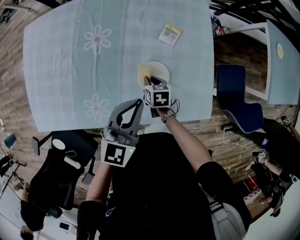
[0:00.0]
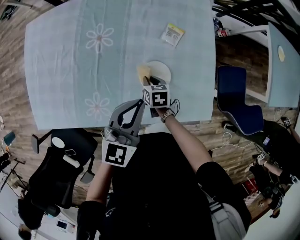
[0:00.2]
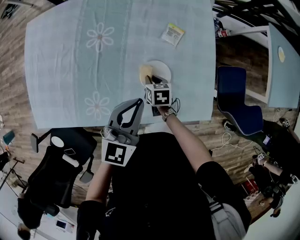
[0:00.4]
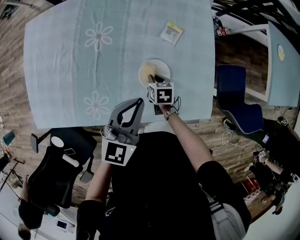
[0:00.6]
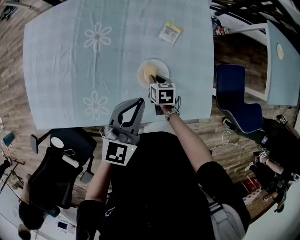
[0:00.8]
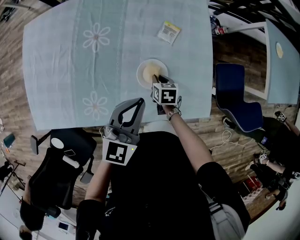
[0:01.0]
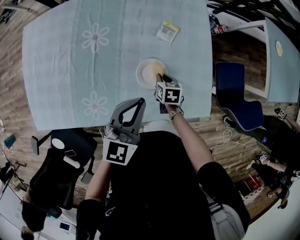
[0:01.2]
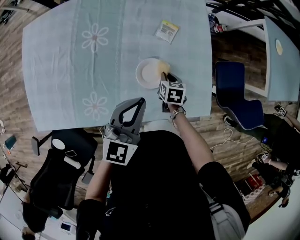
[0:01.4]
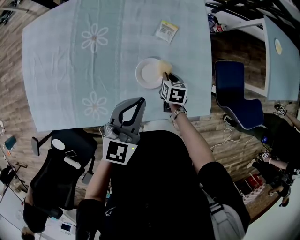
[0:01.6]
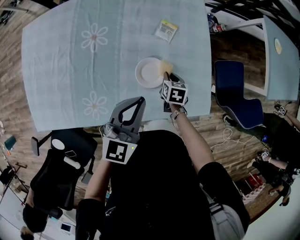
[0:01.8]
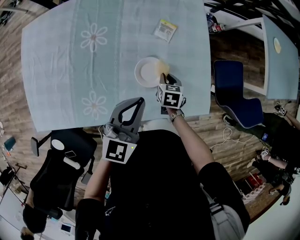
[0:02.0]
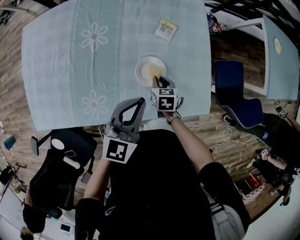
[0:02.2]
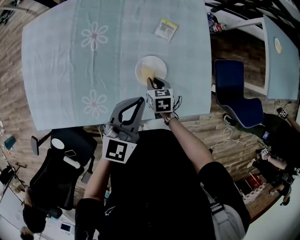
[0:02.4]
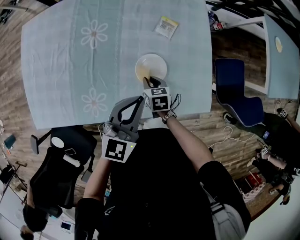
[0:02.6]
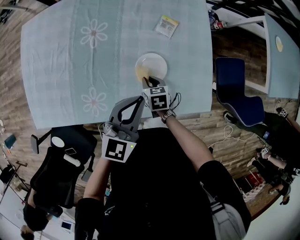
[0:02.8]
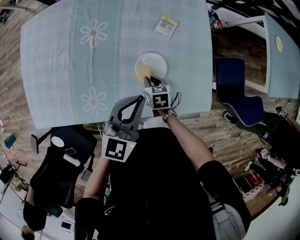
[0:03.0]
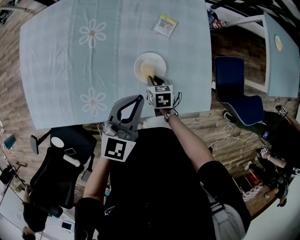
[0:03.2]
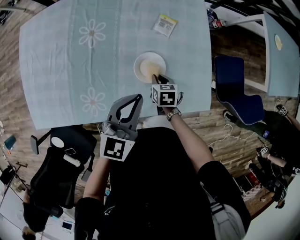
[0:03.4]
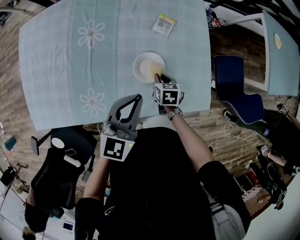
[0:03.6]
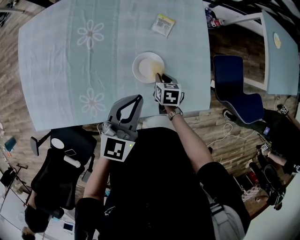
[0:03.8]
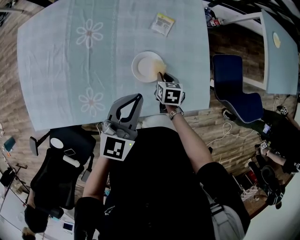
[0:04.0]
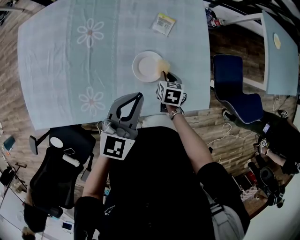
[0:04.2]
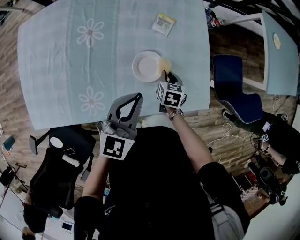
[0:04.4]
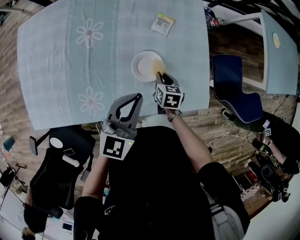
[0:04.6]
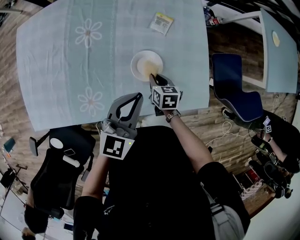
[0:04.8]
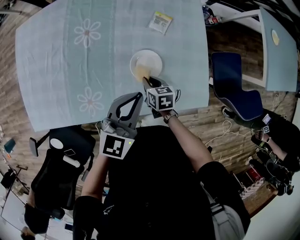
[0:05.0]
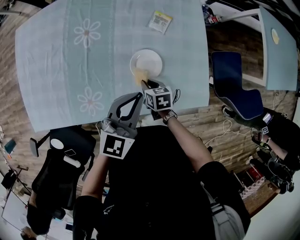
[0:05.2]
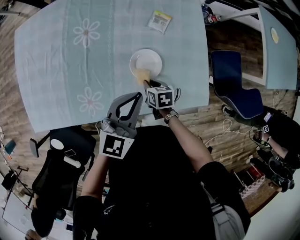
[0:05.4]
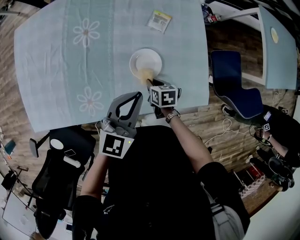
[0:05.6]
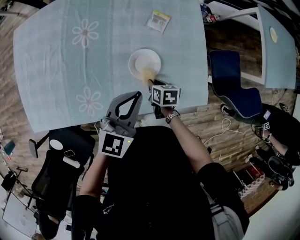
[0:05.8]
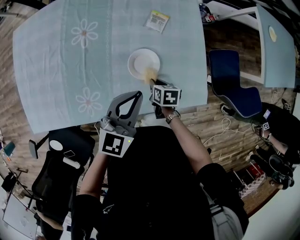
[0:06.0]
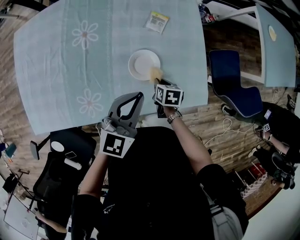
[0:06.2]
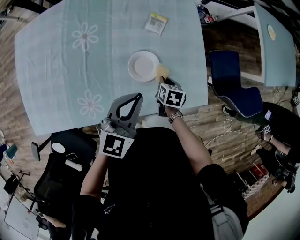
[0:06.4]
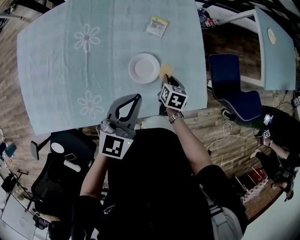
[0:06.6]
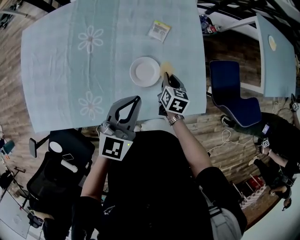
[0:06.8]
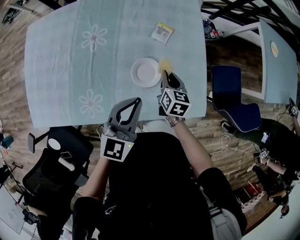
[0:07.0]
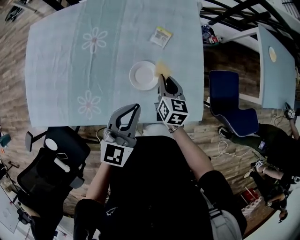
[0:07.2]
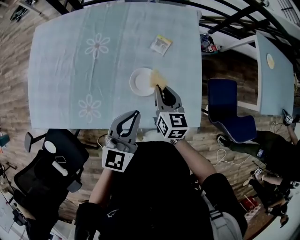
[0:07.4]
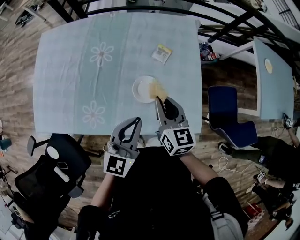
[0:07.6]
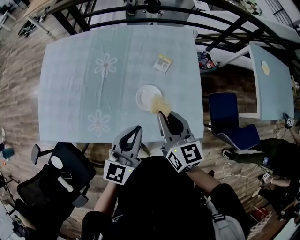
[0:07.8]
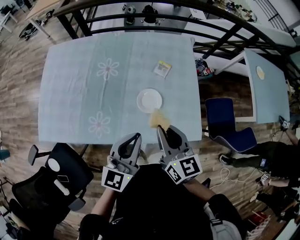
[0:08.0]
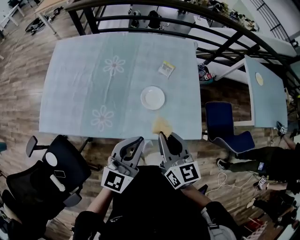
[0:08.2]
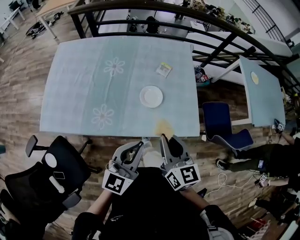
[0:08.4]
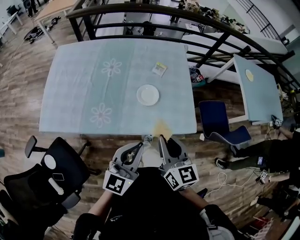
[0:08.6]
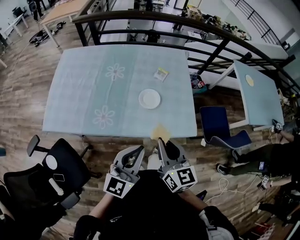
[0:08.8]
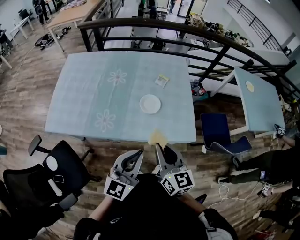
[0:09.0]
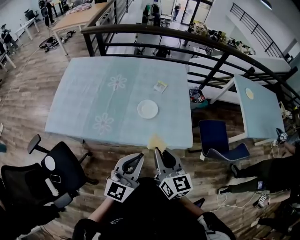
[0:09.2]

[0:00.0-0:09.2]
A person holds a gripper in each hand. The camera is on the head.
0:00.0 to 0:01.6: The right gripper moves to the right, roughly 10 cm.
0:01.6 to 0:03.0: The right gripper travels to the left and backward by about 10 cm.
0:03.0 to 0:04.6: The right gripper travels to the right by some 5 cm.
0:04.6 to 0:06.2: The right gripper moves about 5 cm to the left and comes back.
0:06.2 to 0:07.6: The right gripper is displaced upward by approximately 25 cm, and points its fingers roughly 40 degrees further upward. The left gripper shifts by some 5 cm, and turns by some 20 degrees.
0:07.6 to 0:09.2: Both grippers move backward, some 25 cm.

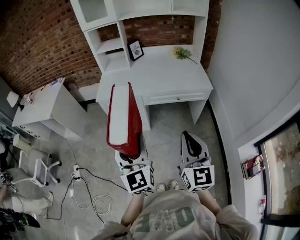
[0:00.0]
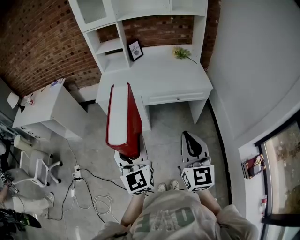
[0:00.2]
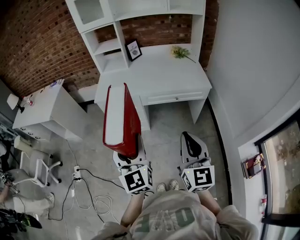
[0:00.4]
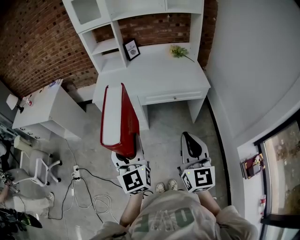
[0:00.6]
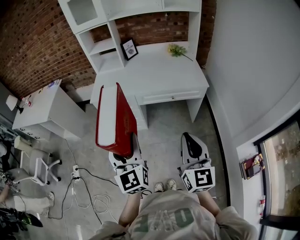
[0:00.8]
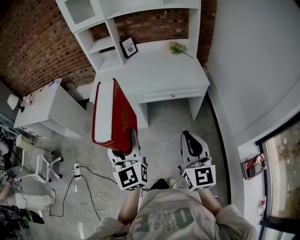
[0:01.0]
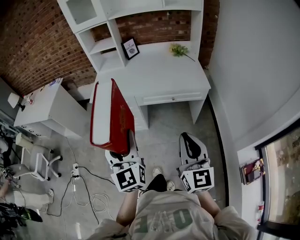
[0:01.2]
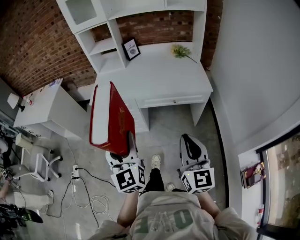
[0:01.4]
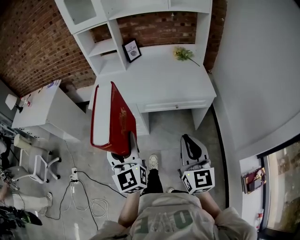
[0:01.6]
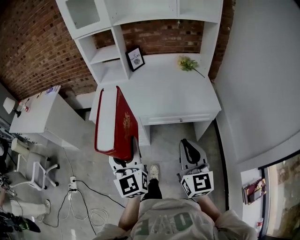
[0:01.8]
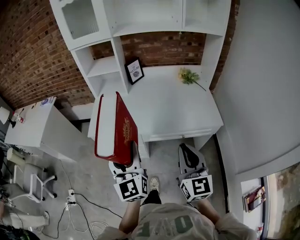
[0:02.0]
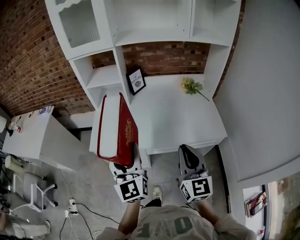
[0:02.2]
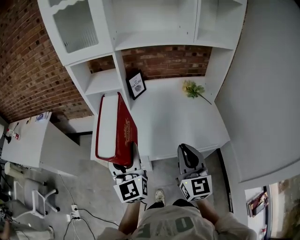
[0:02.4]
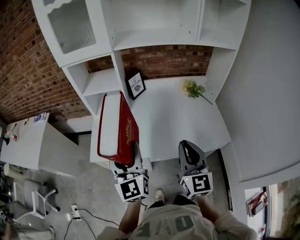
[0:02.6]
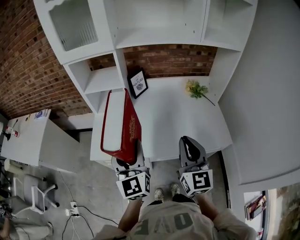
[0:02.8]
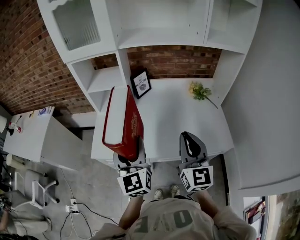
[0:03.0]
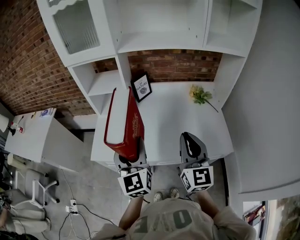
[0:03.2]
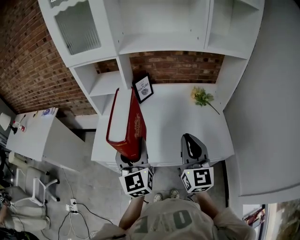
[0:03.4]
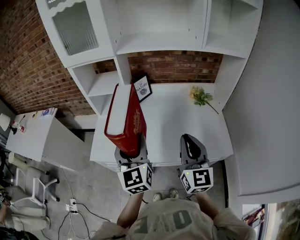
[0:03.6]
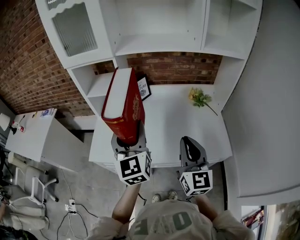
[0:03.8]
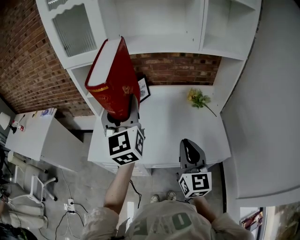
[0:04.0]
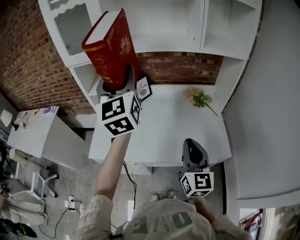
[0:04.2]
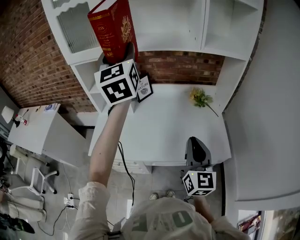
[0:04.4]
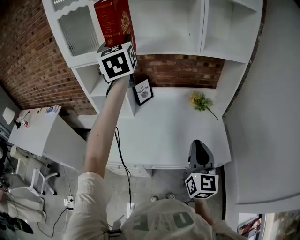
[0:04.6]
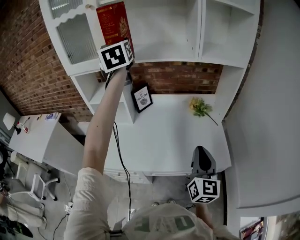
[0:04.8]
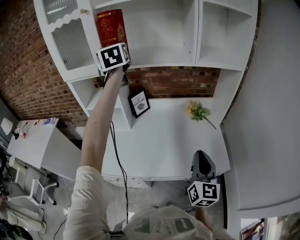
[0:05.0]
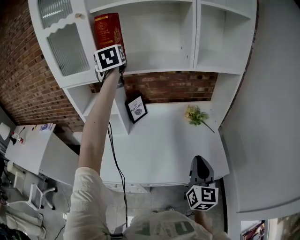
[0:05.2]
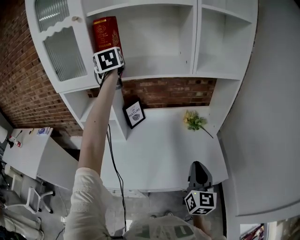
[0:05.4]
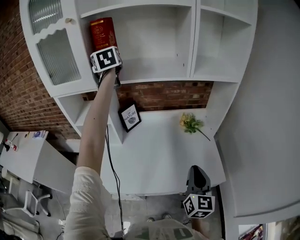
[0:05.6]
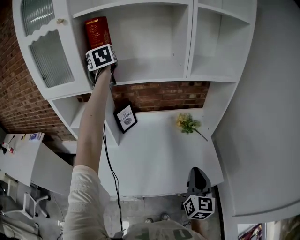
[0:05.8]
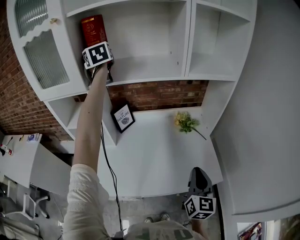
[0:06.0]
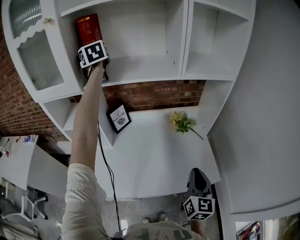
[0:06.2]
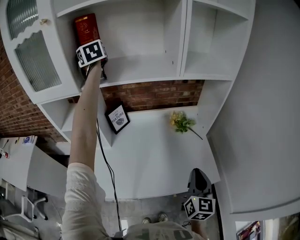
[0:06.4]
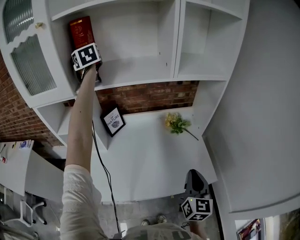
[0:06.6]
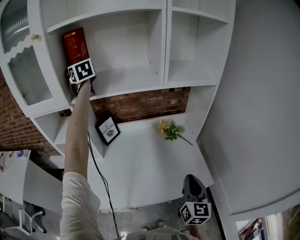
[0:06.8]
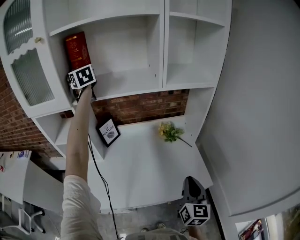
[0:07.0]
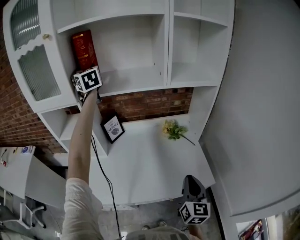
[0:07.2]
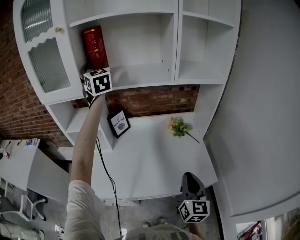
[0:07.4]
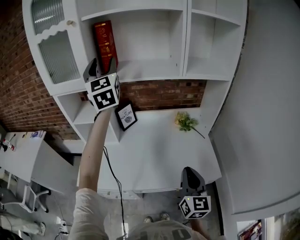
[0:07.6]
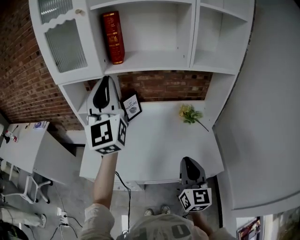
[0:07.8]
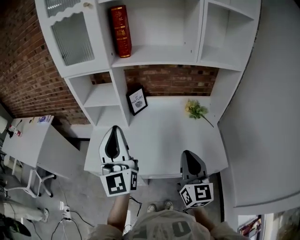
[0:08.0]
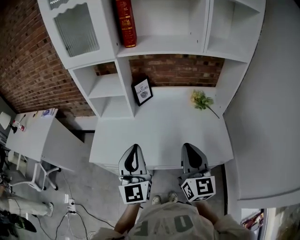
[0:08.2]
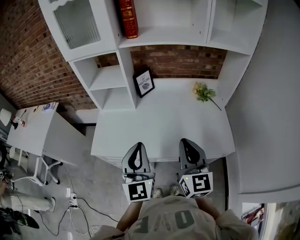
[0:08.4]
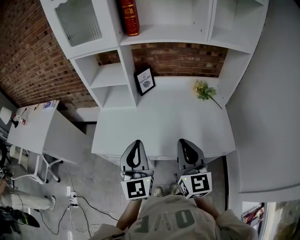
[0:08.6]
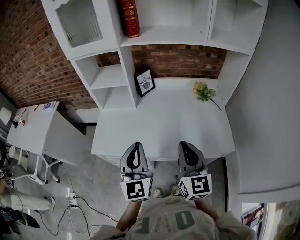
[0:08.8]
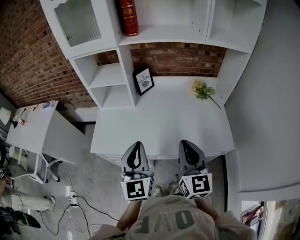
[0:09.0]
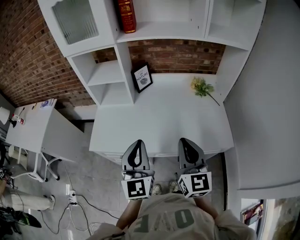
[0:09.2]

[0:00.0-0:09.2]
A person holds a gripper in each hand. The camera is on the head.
0:00.0 to 0:01.6: The left gripper heads forward, covering some 10 cm. Meanwhile the right gripper goes roughly 10 cm forward and to the right.
0:01.6 to 0:03.0: The two grippers go roughly 35 cm forward.
0:03.0 to 0:04.6: The left gripper goes some 35 cm upward and forward. Meanwhile the right gripper moves to the right, approximately 10 cm.
0:04.6 to 0:06.2: The right gripper travels to the right, downward and forward by about 10 cm. The left gripper heads forward, covering about 25 cm.
0:06.2 to 0:07.6: The right gripper moves to the left, about 5 cm. Meanwhile the left gripper shifts roughly 20 cm backward, and rotates approximately 20 degrees.
0:07.6 to 0:09.2: The right gripper goes approximately 10 cm to the left. The left gripper goes approximately 40 cm backward and downward, and closes its fingers.

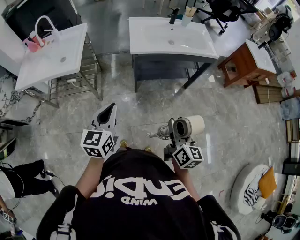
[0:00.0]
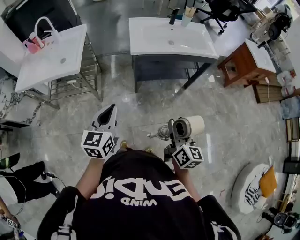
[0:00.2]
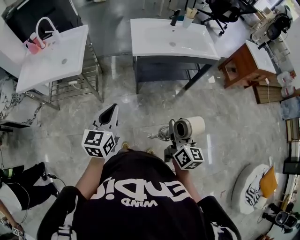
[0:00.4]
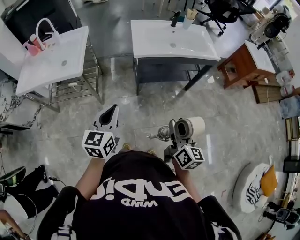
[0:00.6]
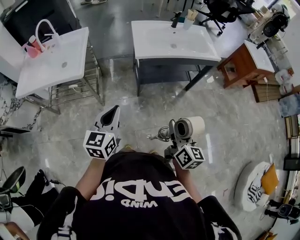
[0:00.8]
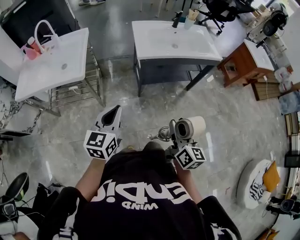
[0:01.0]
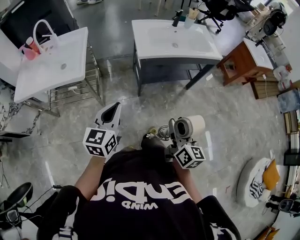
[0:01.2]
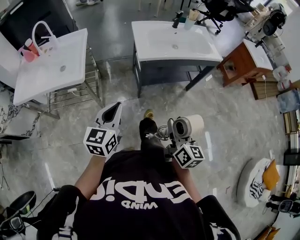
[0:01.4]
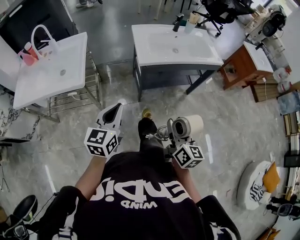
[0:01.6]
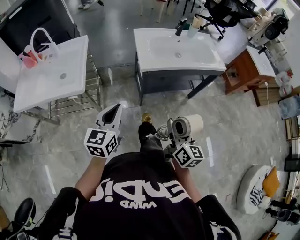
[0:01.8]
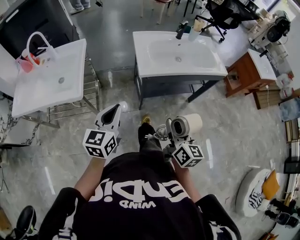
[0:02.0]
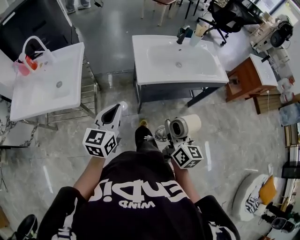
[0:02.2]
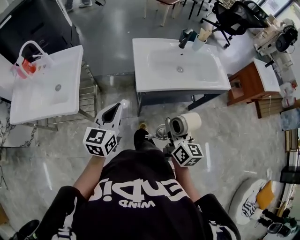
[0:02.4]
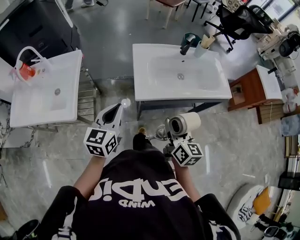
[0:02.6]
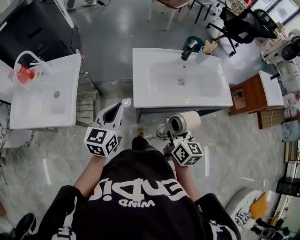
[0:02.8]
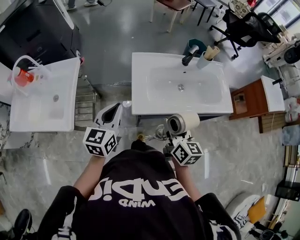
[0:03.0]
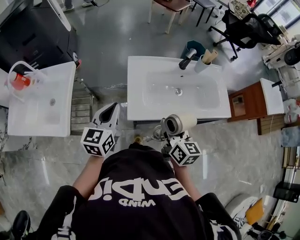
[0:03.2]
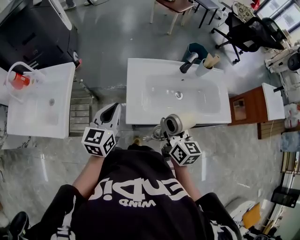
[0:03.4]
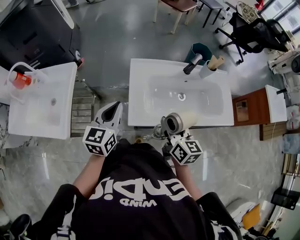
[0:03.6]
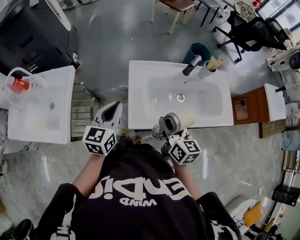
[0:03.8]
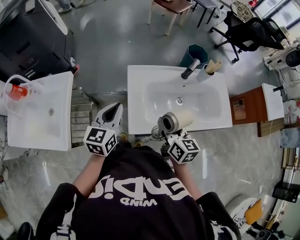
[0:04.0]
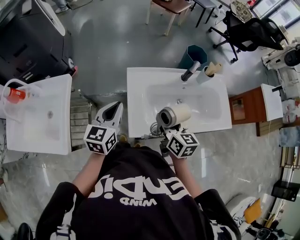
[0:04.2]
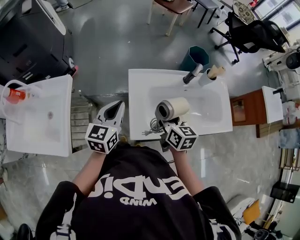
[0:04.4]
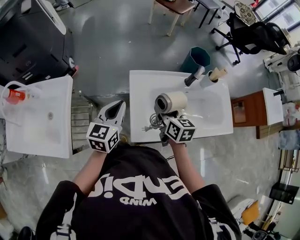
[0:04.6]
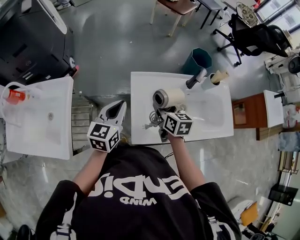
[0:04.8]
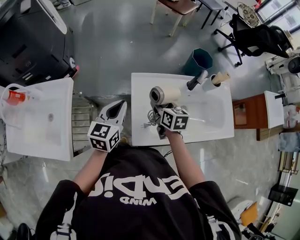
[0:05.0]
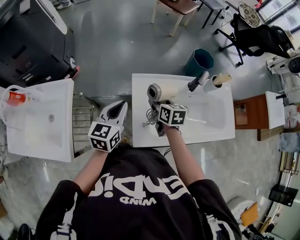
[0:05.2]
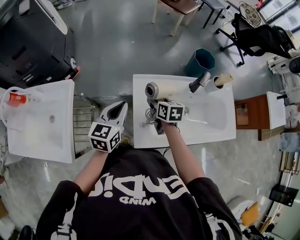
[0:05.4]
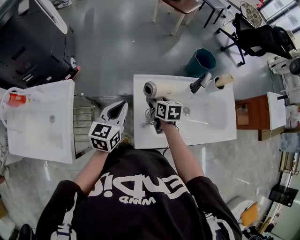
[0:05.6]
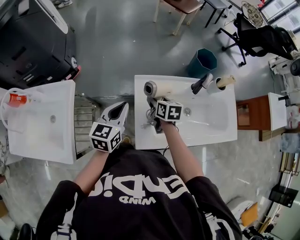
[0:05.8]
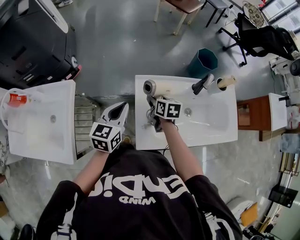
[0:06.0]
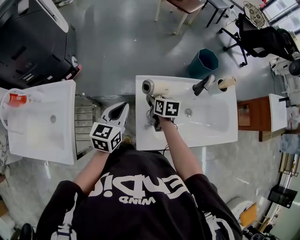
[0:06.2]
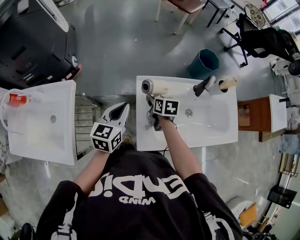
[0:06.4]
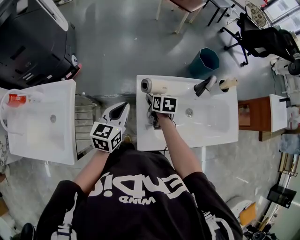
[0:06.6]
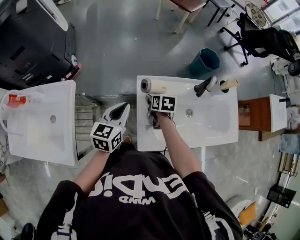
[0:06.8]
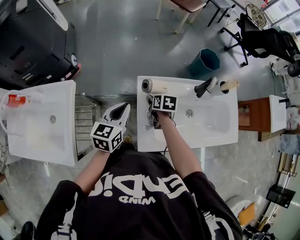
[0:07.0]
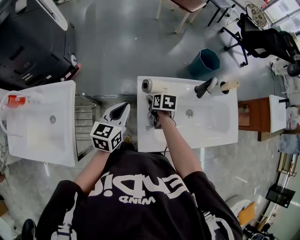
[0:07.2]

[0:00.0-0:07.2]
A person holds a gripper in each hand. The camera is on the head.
0:00.0 to 0:01.4: The left gripper heads to the left and forward, covering approximately 10 cm. The right gripper moves to the left, about 10 cm.
0:01.4 to 0:02.8: The two grippers go some 35 cm forward.
0:02.8 to 0:04.4: Both grippers travel together forward, some 20 cm.
0:04.4 to 0:05.8: The left gripper heads forward, covering roughly 5 cm, while the right gripper heads forward, downward and to the left, covering about 15 cm.
0:05.8 to 0:07.2: The right gripper shifts some 5 cm downward.
